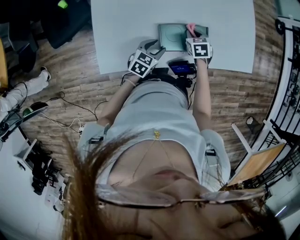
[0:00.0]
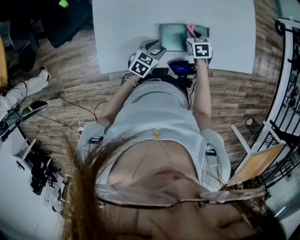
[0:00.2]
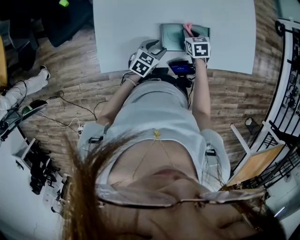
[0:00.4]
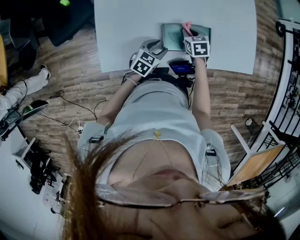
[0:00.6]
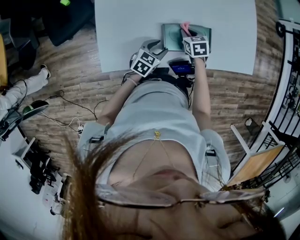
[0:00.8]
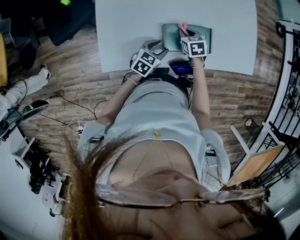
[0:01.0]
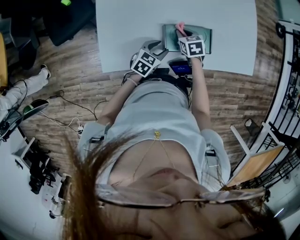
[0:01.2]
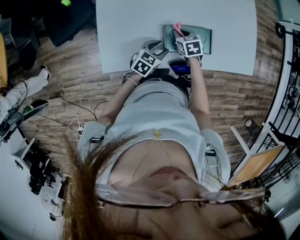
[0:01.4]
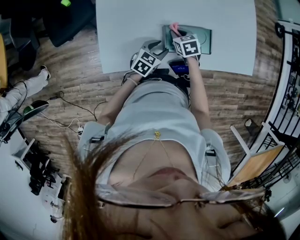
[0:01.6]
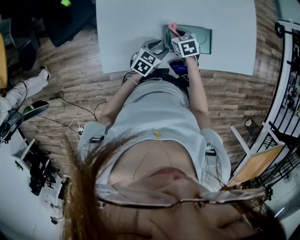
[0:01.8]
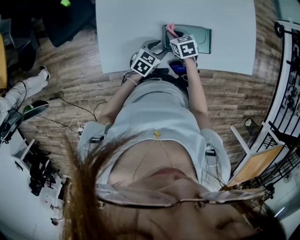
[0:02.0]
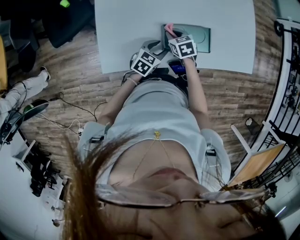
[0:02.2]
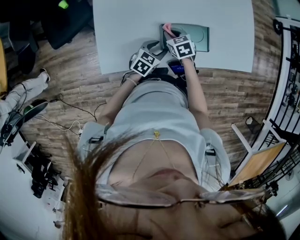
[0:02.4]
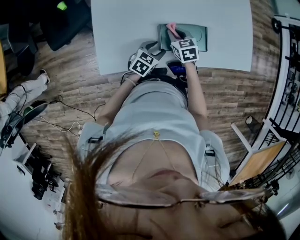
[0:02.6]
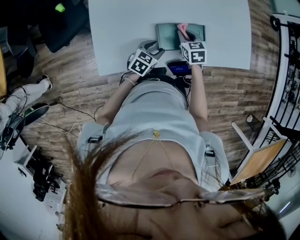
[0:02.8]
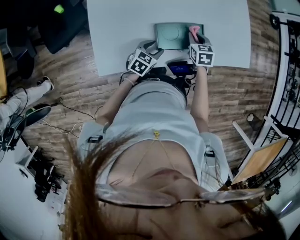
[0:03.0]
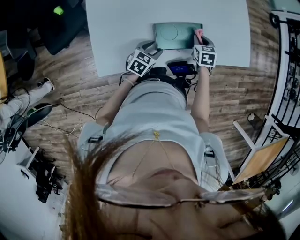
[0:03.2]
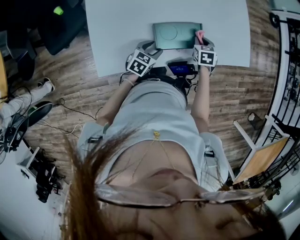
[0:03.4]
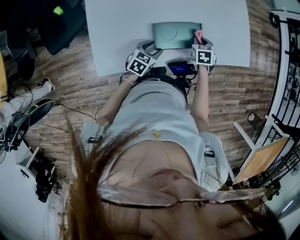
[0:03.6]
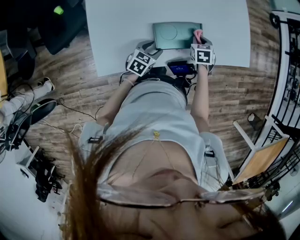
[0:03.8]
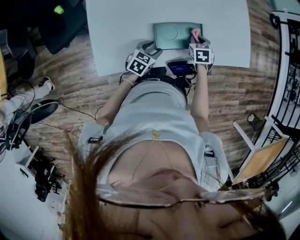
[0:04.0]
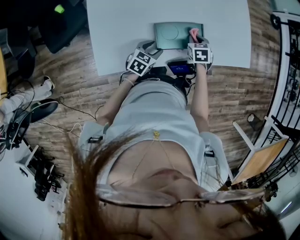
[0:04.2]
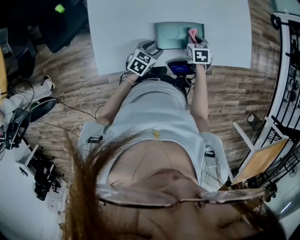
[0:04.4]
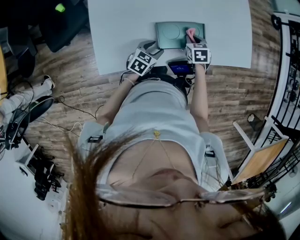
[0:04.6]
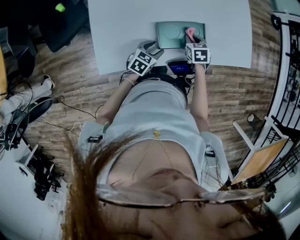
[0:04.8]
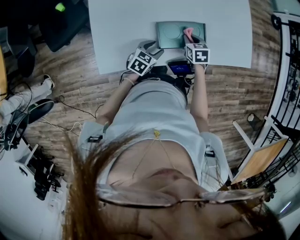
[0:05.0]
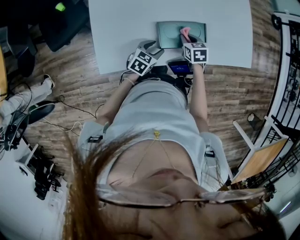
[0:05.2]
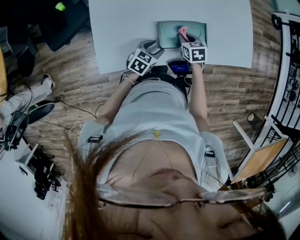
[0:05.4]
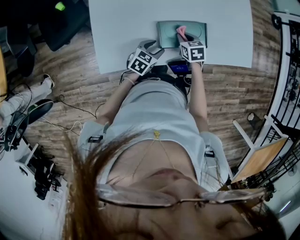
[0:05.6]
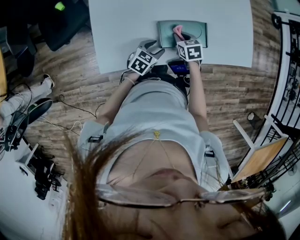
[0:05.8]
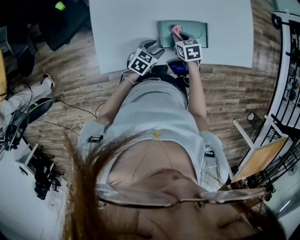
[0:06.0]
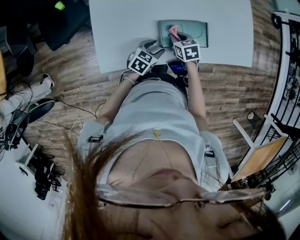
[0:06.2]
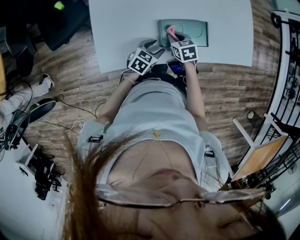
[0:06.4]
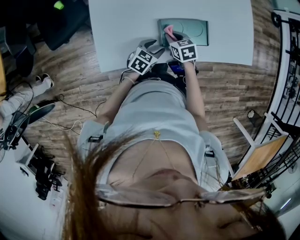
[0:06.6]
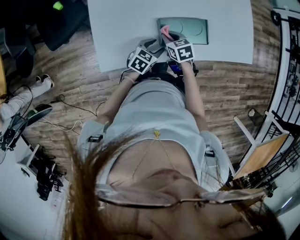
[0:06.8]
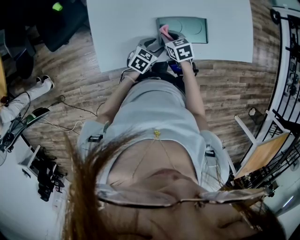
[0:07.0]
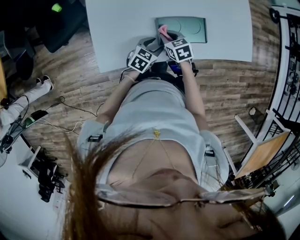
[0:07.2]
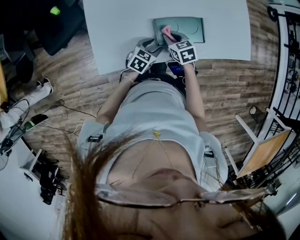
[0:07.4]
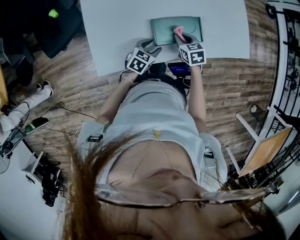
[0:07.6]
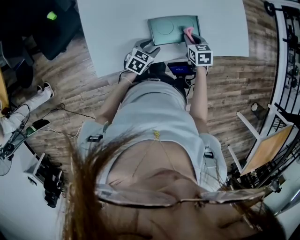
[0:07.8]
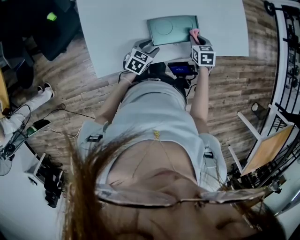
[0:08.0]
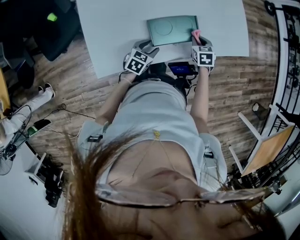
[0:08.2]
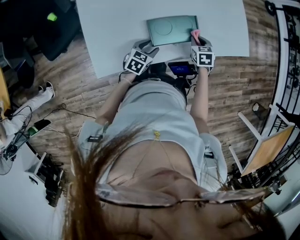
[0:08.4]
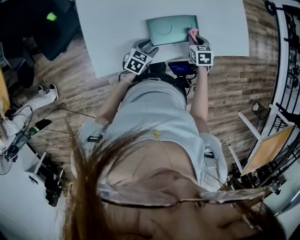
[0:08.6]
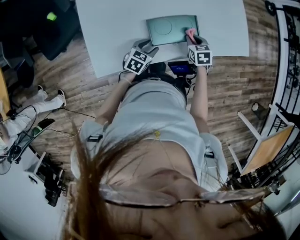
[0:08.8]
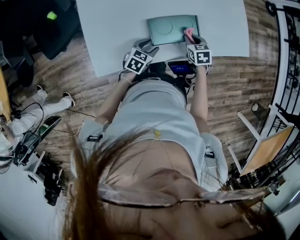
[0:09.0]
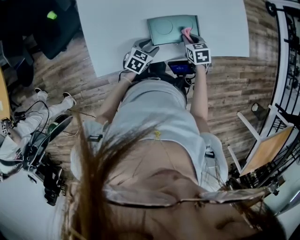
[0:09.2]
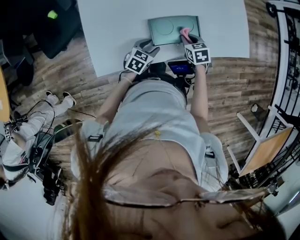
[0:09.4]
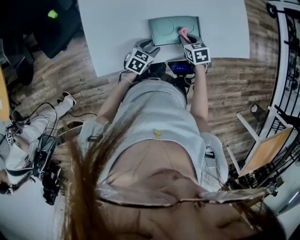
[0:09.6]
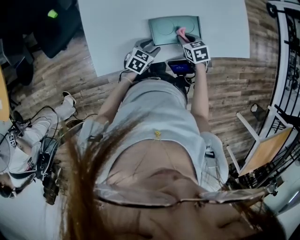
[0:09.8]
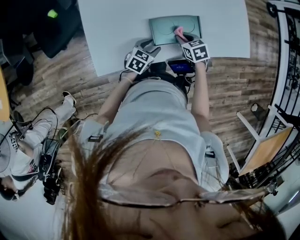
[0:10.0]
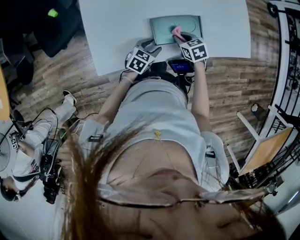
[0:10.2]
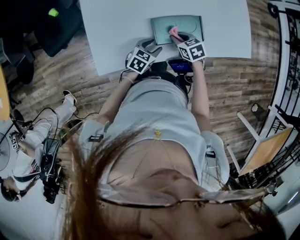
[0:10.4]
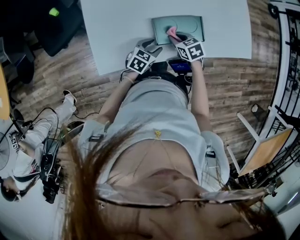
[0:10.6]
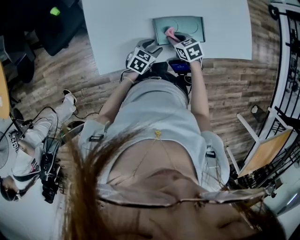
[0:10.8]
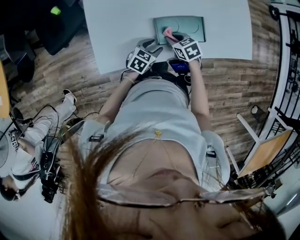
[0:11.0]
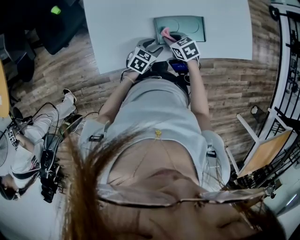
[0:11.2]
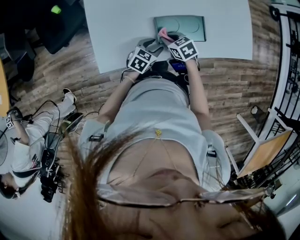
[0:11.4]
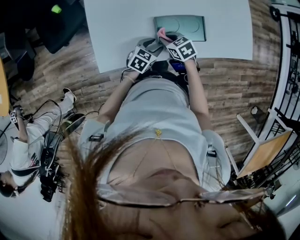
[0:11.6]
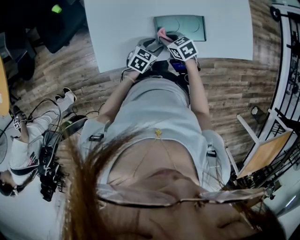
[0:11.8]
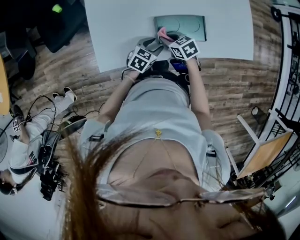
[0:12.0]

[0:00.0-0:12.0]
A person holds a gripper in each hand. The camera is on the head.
0:00.0 to 0:01.6: The right gripper heads to the left, covering about 10 cm.
0:01.6 to 0:03.0: The right gripper is displaced to the right by some 10 cm.
0:04.4 to 0:06.0: The right gripper moves to the left, approximately 10 cm.
0:06.0 to 0:07.6: There are only small adjustments of the grippers.
0:07.6 to 0:09.0: The right gripper goes some 5 cm to the right.
0:09.0 to 0:10.4: The right gripper goes about 10 cm to the left.
0:10.4 to 0:12.0: The right gripper goes about 5 cm to the left.

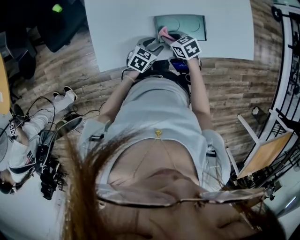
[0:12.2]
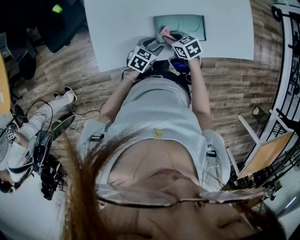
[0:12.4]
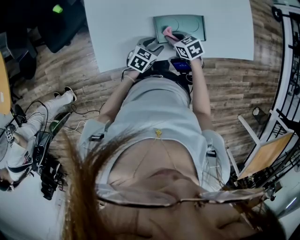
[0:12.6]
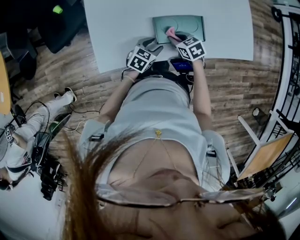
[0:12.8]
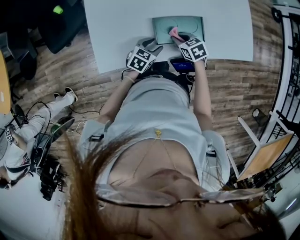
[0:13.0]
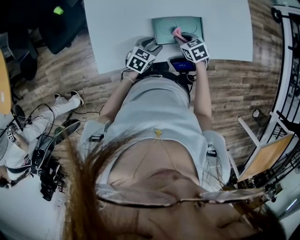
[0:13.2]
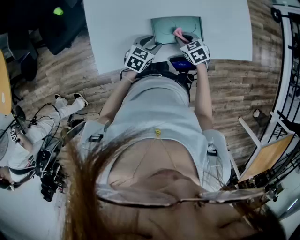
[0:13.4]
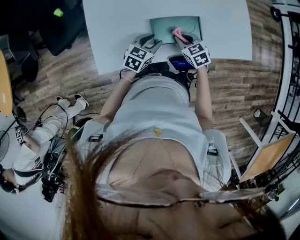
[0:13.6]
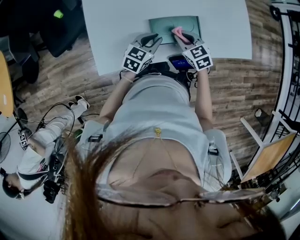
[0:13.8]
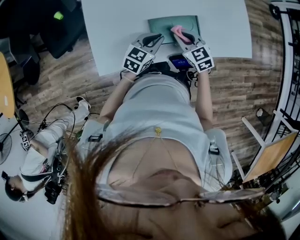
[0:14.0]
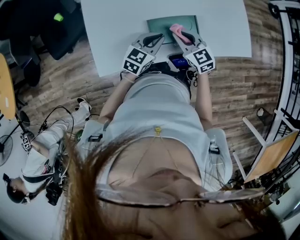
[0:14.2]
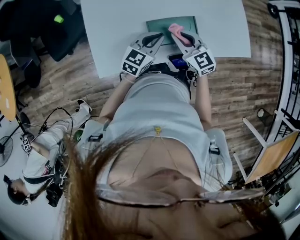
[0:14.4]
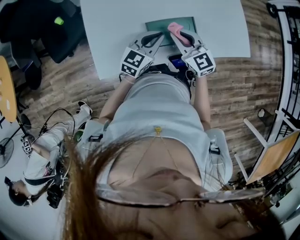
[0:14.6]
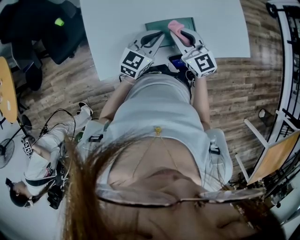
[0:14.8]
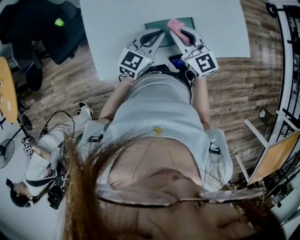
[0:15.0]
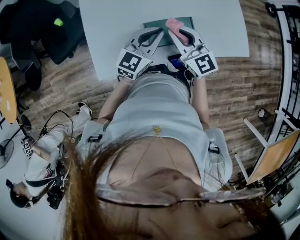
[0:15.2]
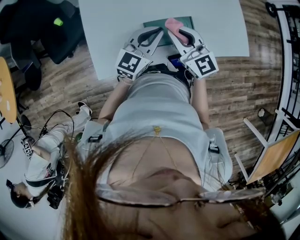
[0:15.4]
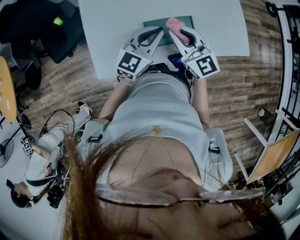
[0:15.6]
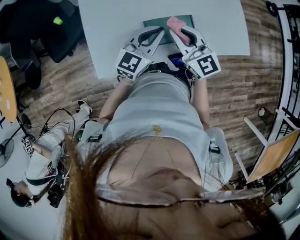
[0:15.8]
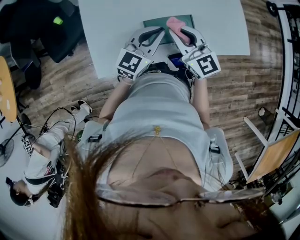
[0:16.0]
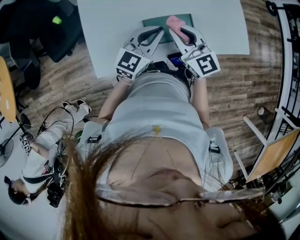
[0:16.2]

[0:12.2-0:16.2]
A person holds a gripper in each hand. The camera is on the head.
0:12.2 to 0:13.6: The right gripper goes about 10 cm to the right. The left gripper moves upward, about 5 cm.
0:13.6 to 0:14.8: Both grippers move upward, approximately 15 cm. The left gripper rotates about 20 degrees, and closes up; the right gripper angles its fingers upward, by roughly 40 degrees.
0:14.8 to 0:16.2: There are only small adjustments of the grippers.

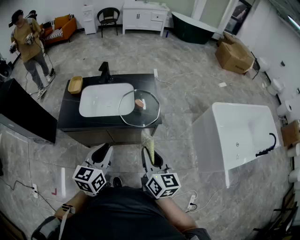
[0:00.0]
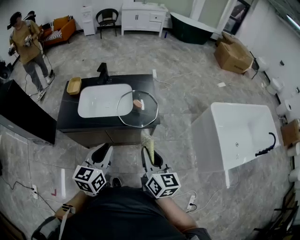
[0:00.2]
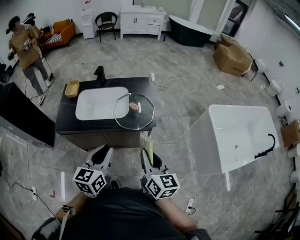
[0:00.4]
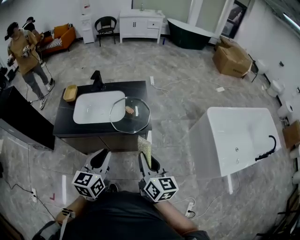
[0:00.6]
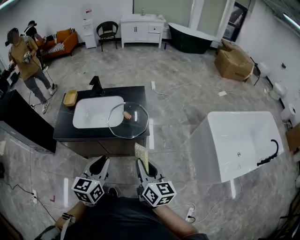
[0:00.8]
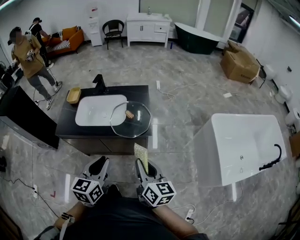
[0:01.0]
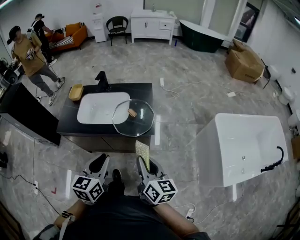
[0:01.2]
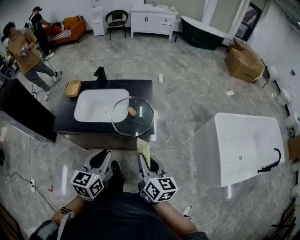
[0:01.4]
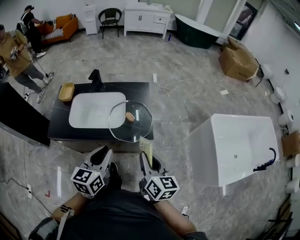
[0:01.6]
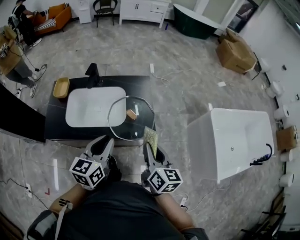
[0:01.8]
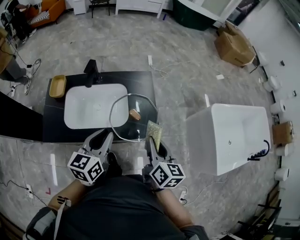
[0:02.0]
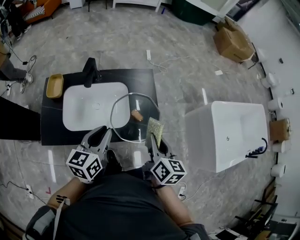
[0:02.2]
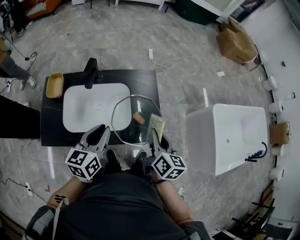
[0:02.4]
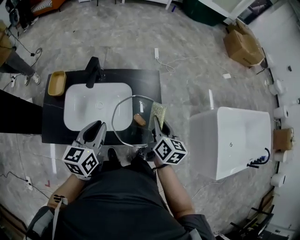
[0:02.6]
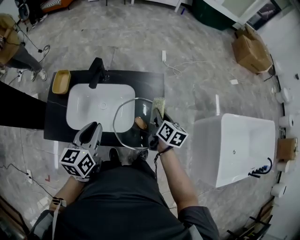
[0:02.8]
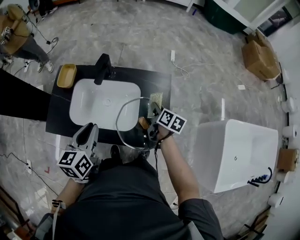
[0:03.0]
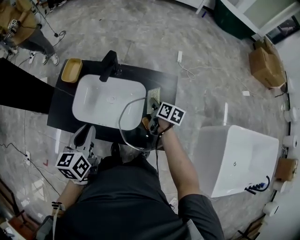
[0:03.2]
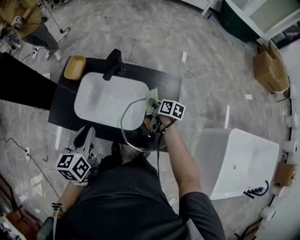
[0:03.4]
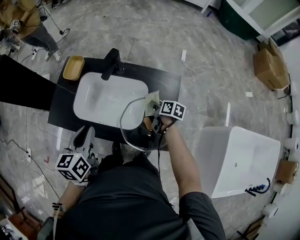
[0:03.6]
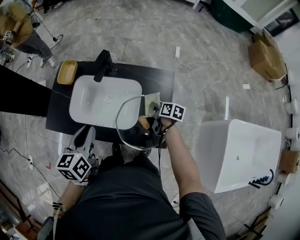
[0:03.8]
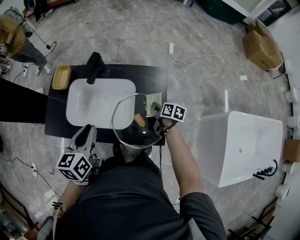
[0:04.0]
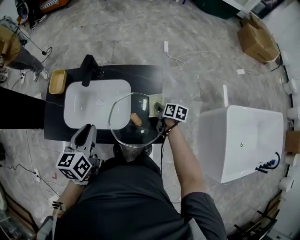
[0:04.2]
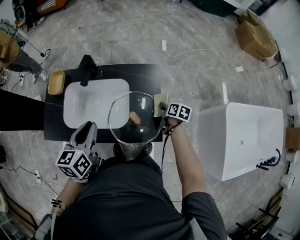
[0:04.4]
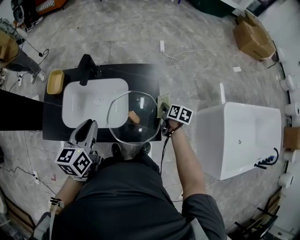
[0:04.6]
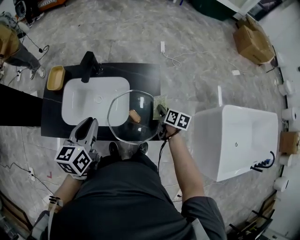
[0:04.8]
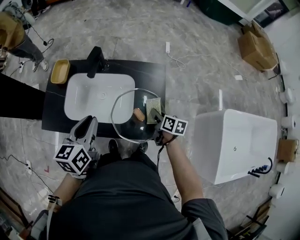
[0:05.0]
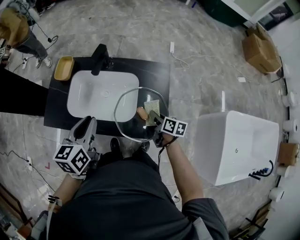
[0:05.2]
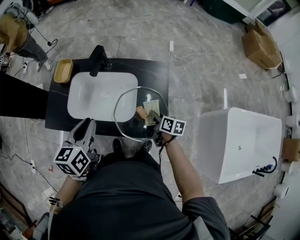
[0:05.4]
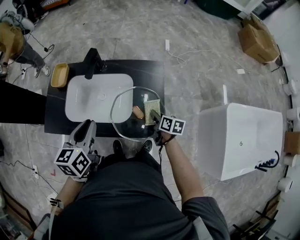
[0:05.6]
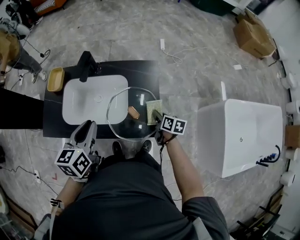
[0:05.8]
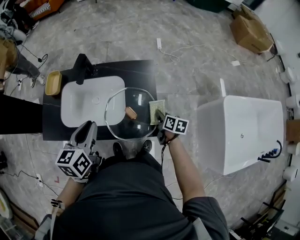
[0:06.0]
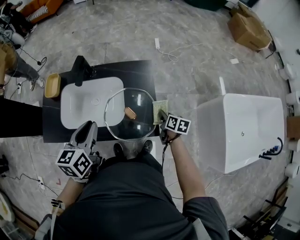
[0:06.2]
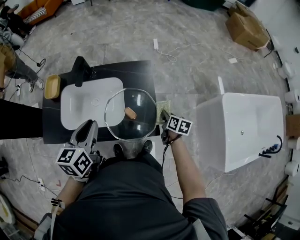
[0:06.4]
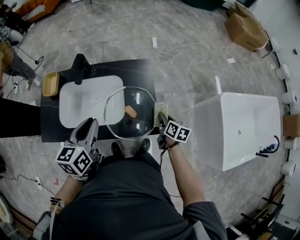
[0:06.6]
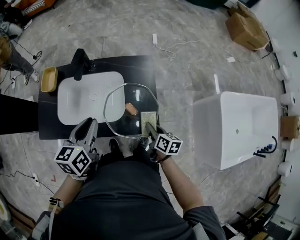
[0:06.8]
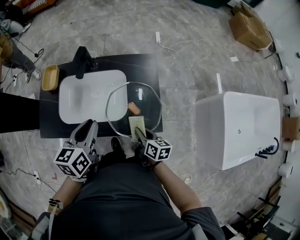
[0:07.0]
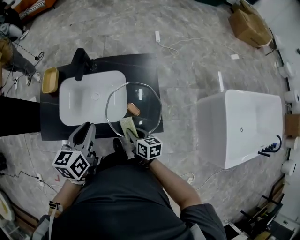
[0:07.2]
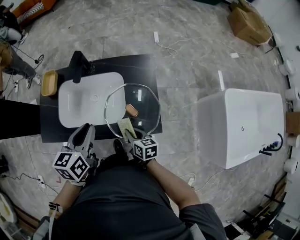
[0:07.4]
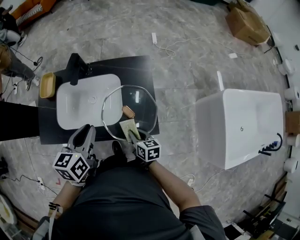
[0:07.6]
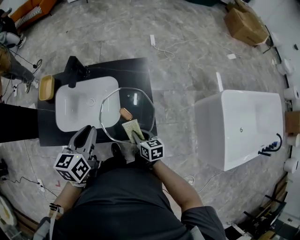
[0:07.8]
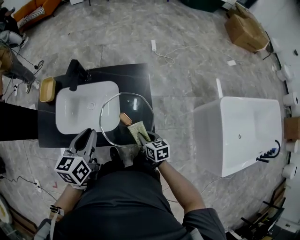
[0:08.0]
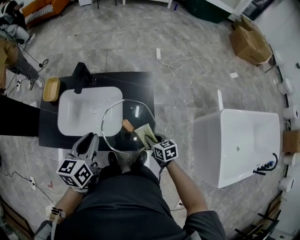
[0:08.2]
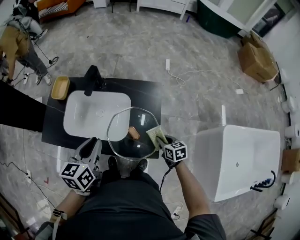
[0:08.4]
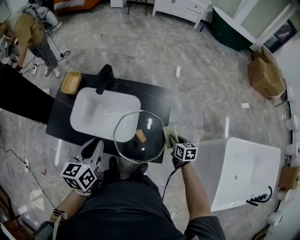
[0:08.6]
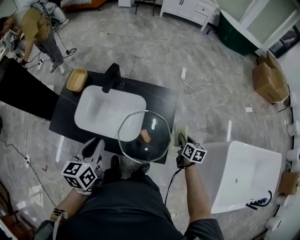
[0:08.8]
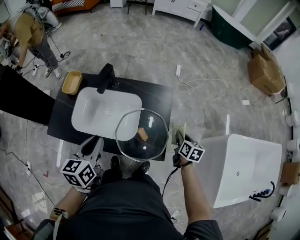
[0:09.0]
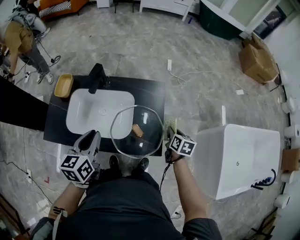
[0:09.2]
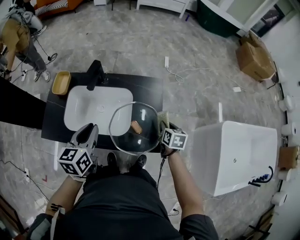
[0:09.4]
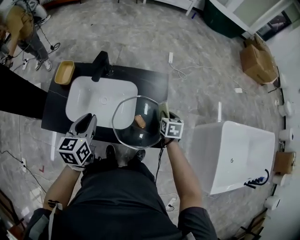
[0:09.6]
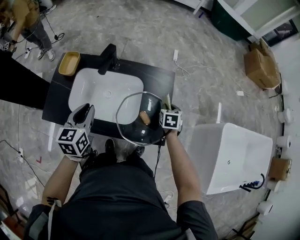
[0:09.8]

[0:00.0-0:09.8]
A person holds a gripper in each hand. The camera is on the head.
0:00.0 to 0:01.4: Both grippers travel together to the right, roughly 10 cm.
0:01.4 to 0:02.8: The left gripper moves forward and to the left, about 30 cm, while the right gripper moves forward, some 35 cm, and swivels roughly 20 degrees.
0:02.8 to 0:04.2: The right gripper goes about 15 cm downward, and turns by some 20 degrees.
0:04.2 to 0:05.6: The right gripper heads backward and to the left, covering about 10 cm.
0:05.6 to 0:07.0: The right gripper travels backward and to the left by approximately 15 cm.
0:07.0 to 0:08.4: The right gripper goes roughly 15 cm to the right and forward, and rotates about 30 degrees.
0:08.4 to 0:09.8: The left gripper is displaced to the left by roughly 10 cm; the right gripper is displaced forward by some 10 cm, and swivels approximately 30 degrees.
